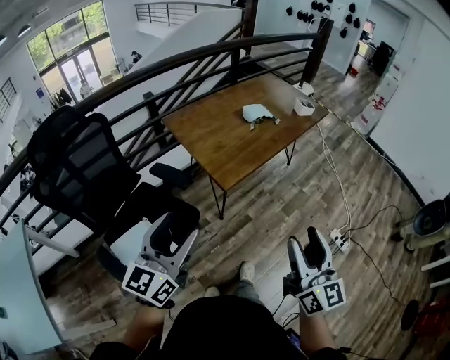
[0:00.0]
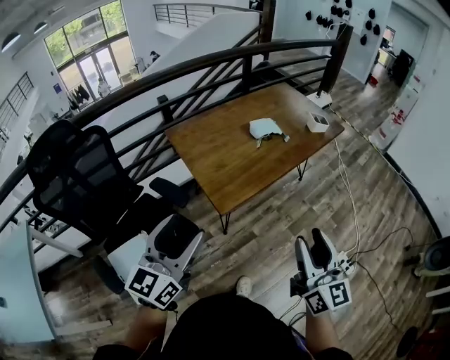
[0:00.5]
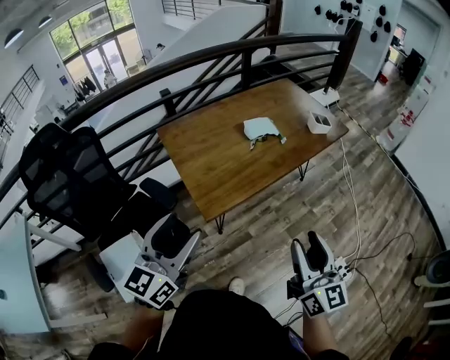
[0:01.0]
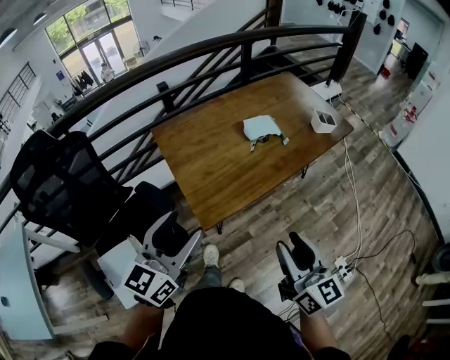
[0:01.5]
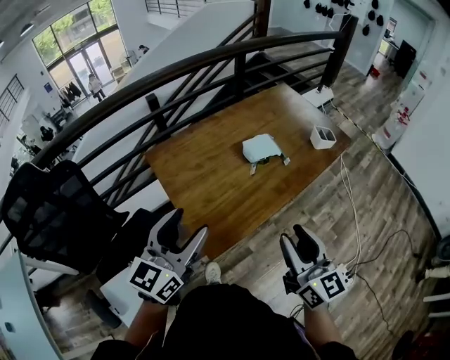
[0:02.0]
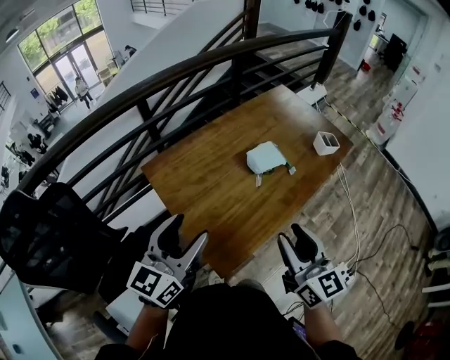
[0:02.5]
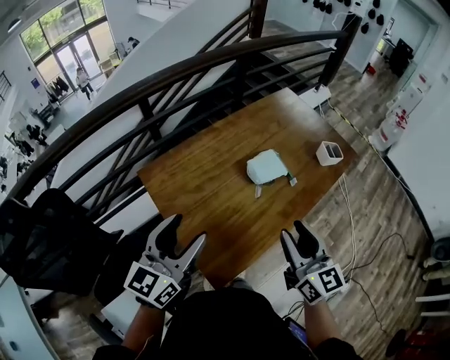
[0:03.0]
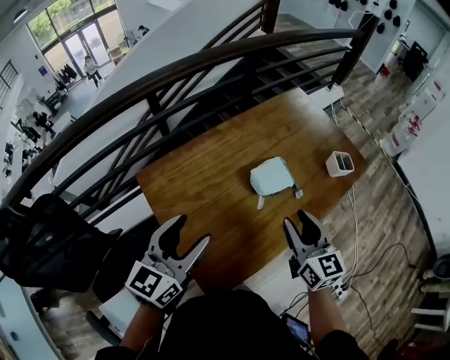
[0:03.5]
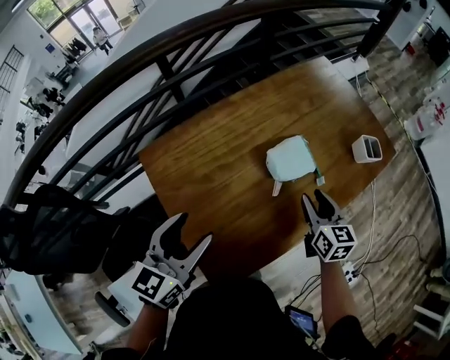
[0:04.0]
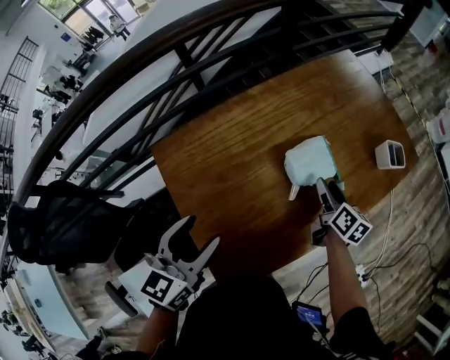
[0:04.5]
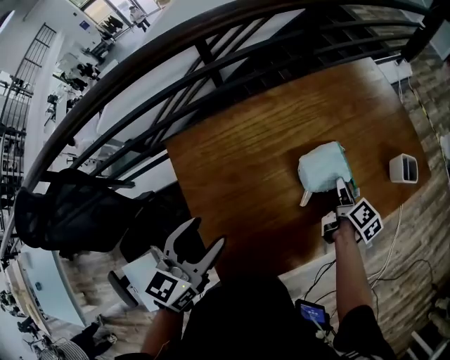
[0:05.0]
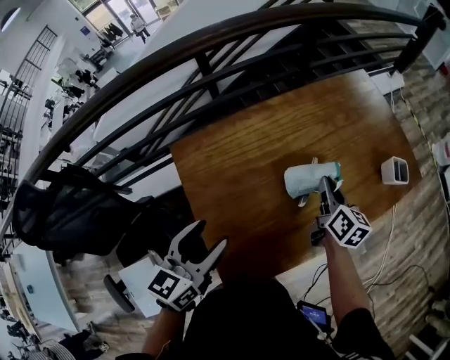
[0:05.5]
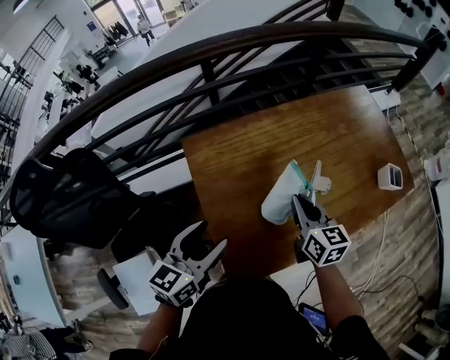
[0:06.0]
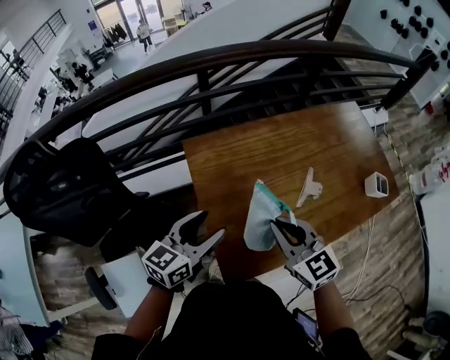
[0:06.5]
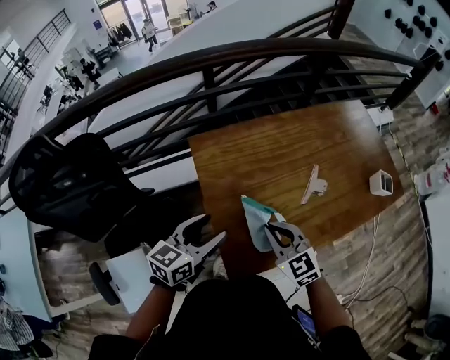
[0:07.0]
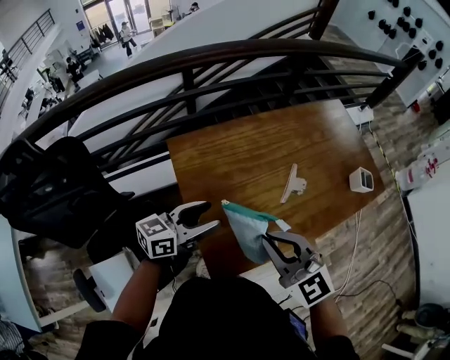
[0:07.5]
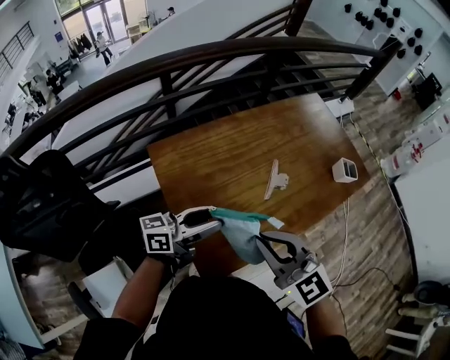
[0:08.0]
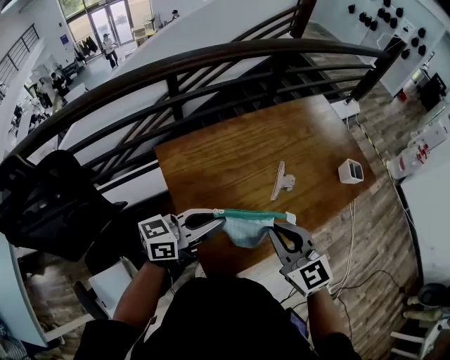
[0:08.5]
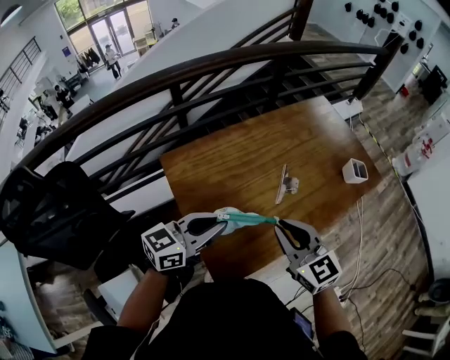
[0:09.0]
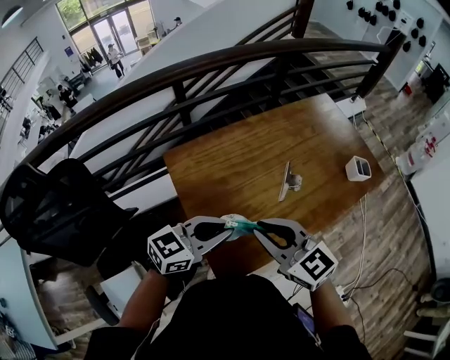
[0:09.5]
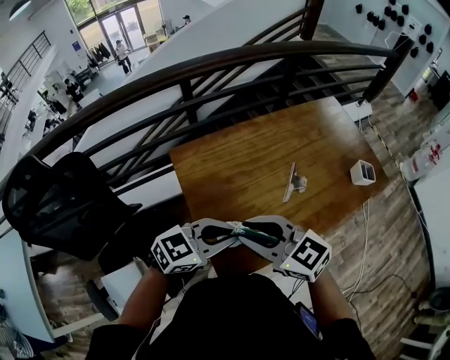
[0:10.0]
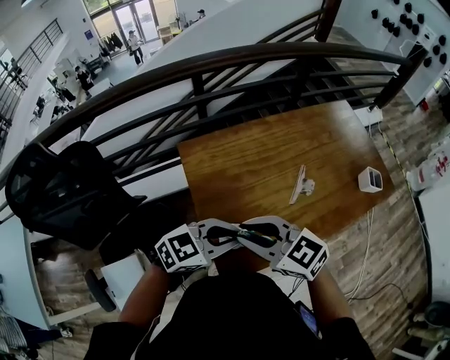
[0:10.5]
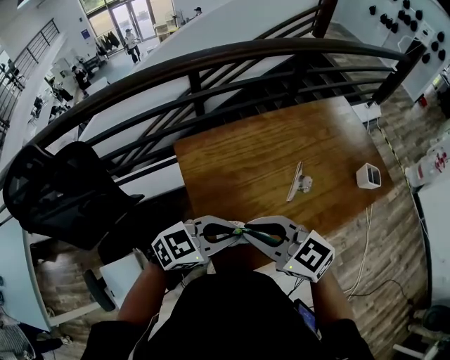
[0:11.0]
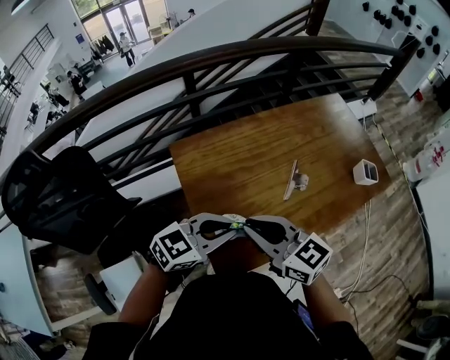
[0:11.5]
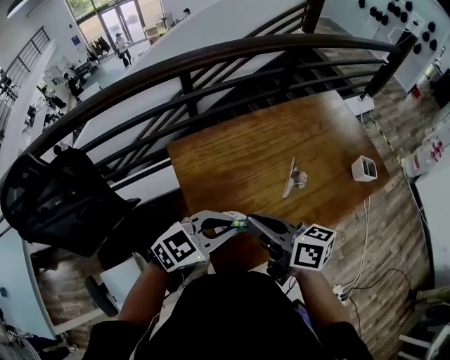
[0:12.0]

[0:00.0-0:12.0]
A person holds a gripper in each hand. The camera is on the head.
0:00.0 to 0:02.0: The two grippers go roughly 30 cm forward.
0:02.0 to 0:04.0: The right gripper heads forward and downward, covering roughly 35 cm, and turns by approximately 30 degrees, while the left gripper heads forward and downward, covering some 20 cm.
0:04.0 to 0:06.0: The left gripper goes approximately 5 cm backward and to the left, while the right gripper travels to the left by approximately 15 cm, and closes up.
0:06.0 to 0:08.0: The right gripper swings up and down, about 15 cm each way, with 2 reversals, and rotates about 40 degrees, while the left gripper moves to the right, roughly 10 cm, and rotates approximately 50 degrees.
0:08.0 to 0:10.0: The left gripper changes place by roughly 5 cm, turns by roughly 40 degrees, and closes up. The right gripper moves roughly 5 cm, and rotates about 20 degrees.
0:10.0 to 0:12.0: The right gripper twists approximately 40 degrees clockwise, seen from behind.

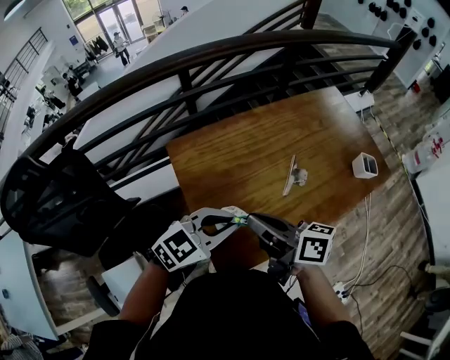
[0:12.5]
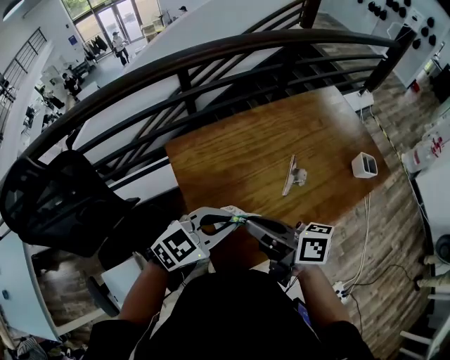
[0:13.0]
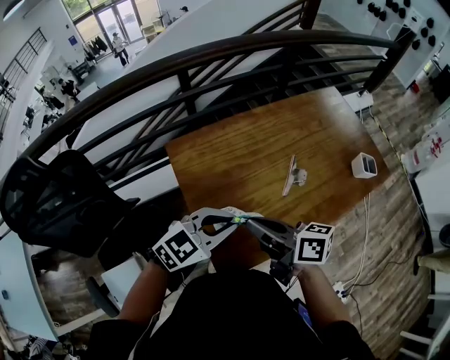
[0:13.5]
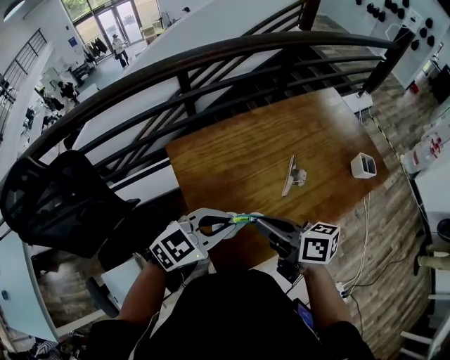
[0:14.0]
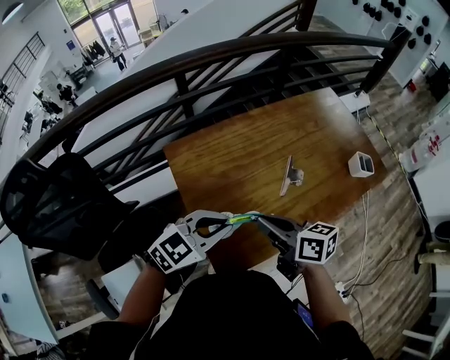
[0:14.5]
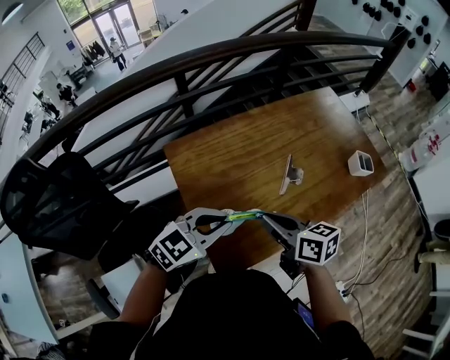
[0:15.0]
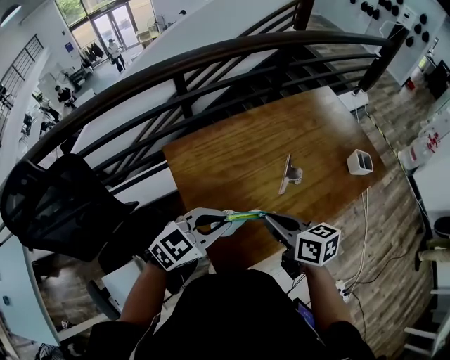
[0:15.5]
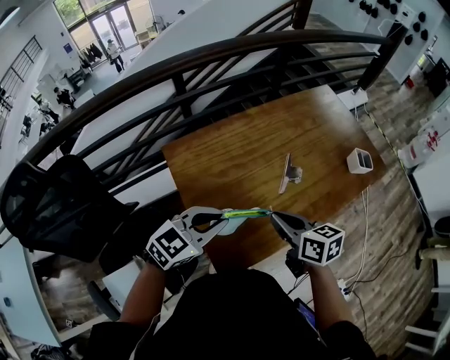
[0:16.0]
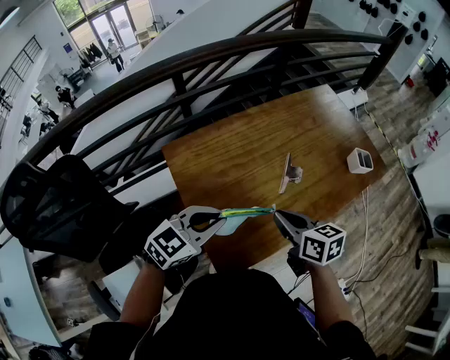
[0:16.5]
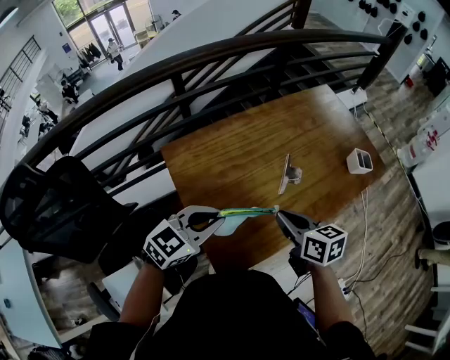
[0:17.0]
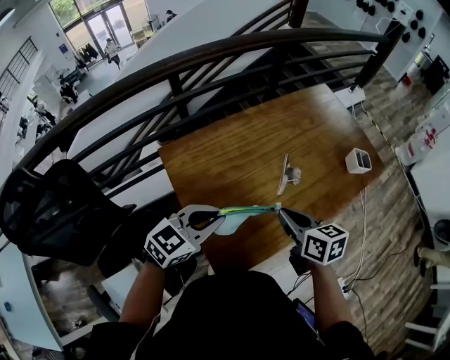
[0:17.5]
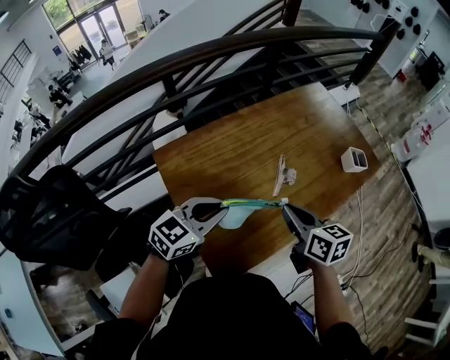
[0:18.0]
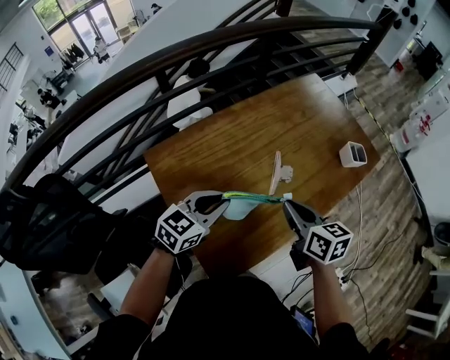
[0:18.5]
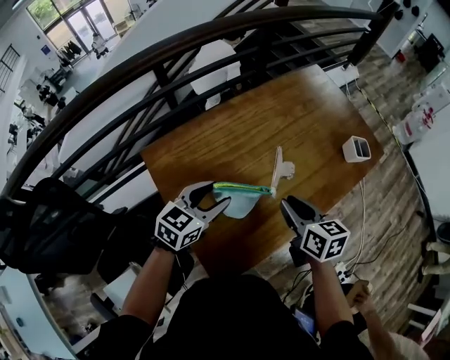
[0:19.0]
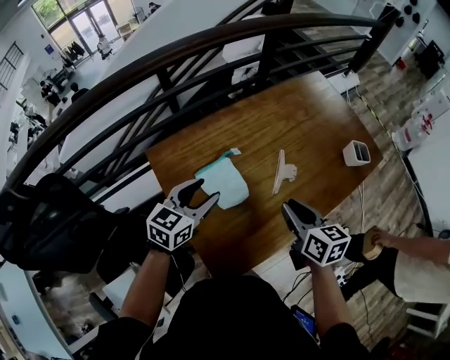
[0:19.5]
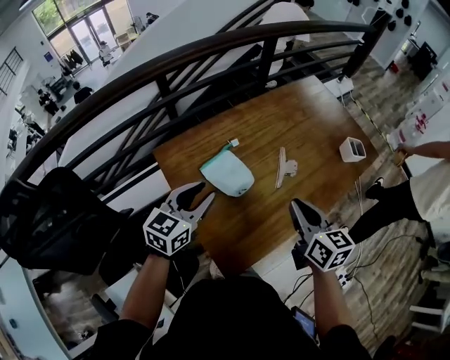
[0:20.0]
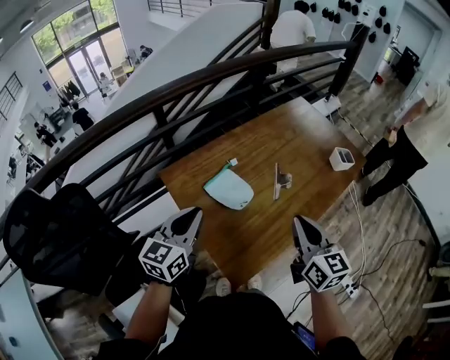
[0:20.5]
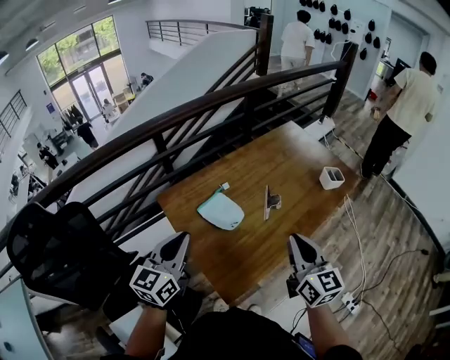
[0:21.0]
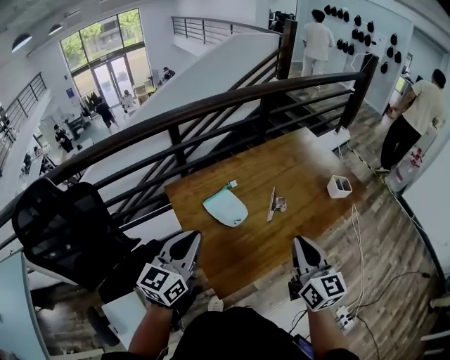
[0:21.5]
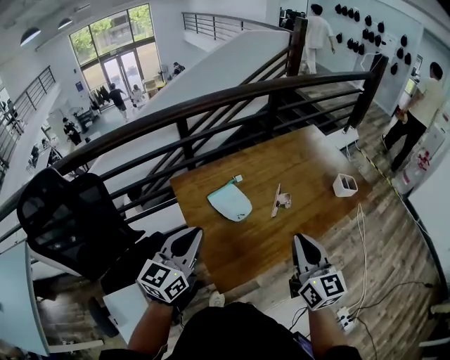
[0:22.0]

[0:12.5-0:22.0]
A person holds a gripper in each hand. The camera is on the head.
0:12.5 to 0:14.5: The right gripper ends up roughly 5 cm from where it was.
0:14.5 to 0:16.5: The right gripper heads to the right, covering approximately 5 cm.
0:16.5 to 0:18.0: The left gripper goes roughly 5 cm forward.
0:18.0 to 0:20.0: The left gripper is displaced to the left by some 5 cm, and opens its fingers.
0:20.0 to 0:22.0: The left gripper moves backward and upward, some 15 cm, turns by some 20 degrees, and closes up; the right gripper moves upward and backward, some 15 cm, and changes its angle by roughly 20 degrees.

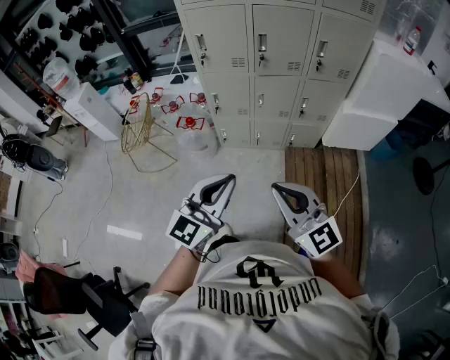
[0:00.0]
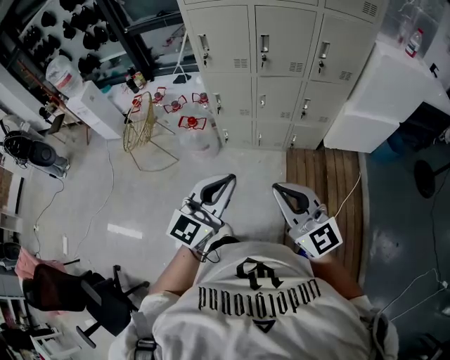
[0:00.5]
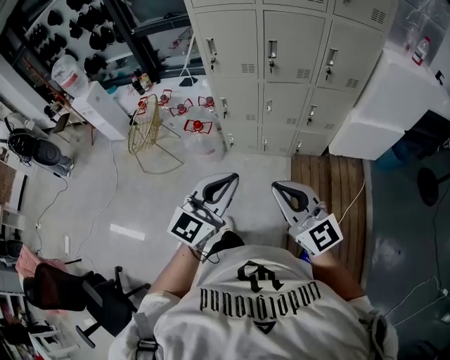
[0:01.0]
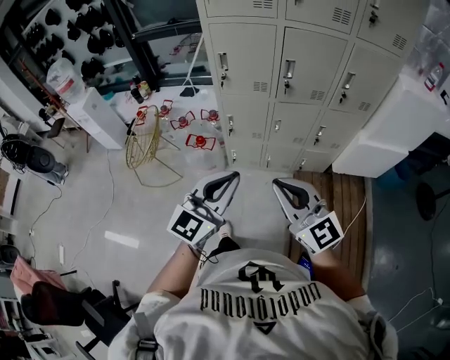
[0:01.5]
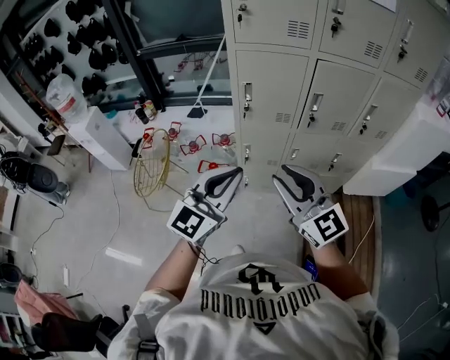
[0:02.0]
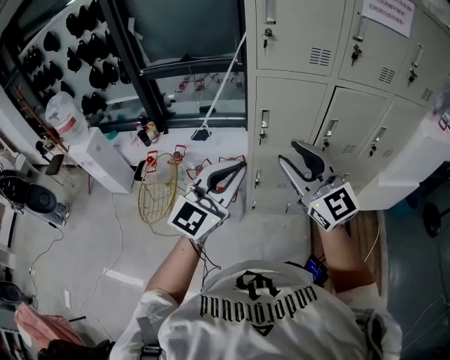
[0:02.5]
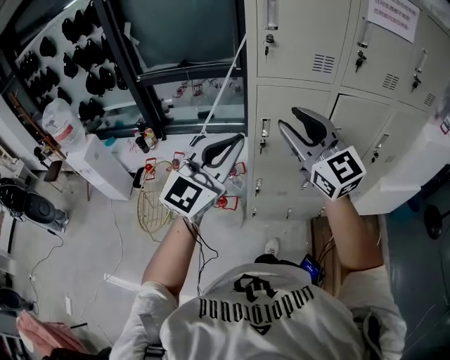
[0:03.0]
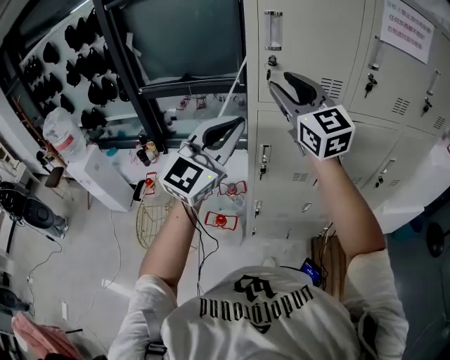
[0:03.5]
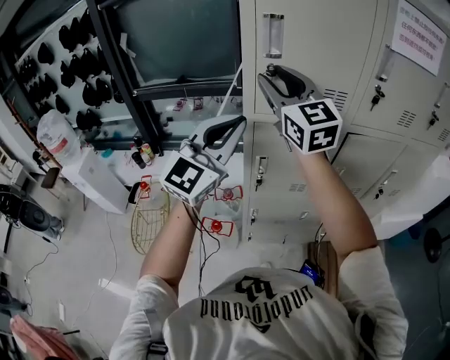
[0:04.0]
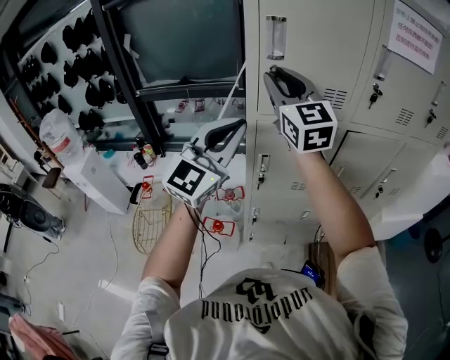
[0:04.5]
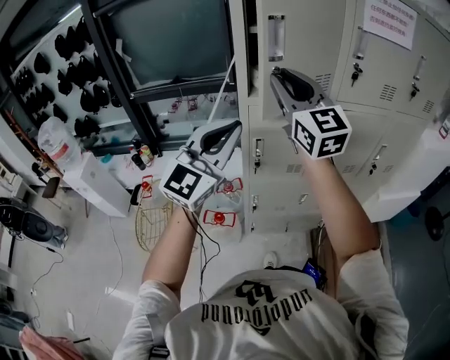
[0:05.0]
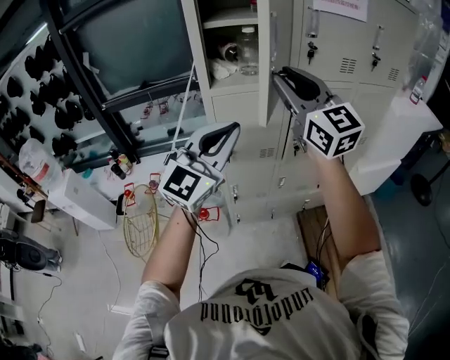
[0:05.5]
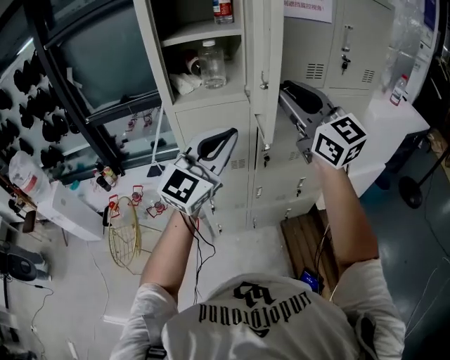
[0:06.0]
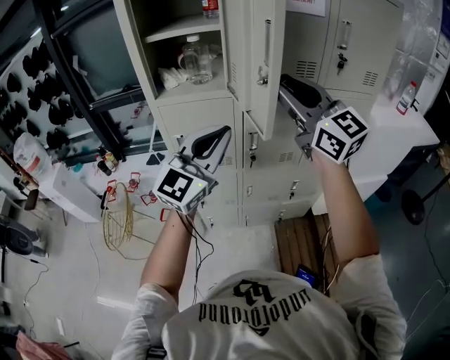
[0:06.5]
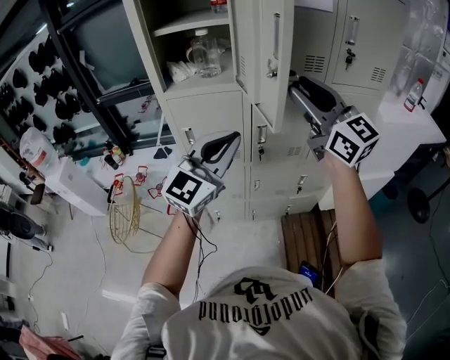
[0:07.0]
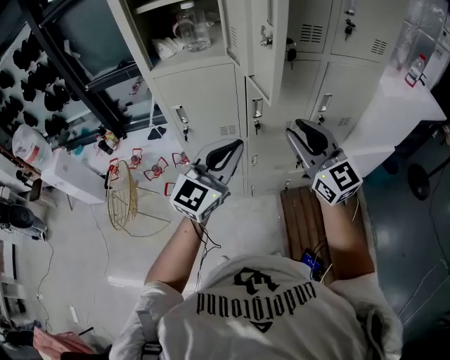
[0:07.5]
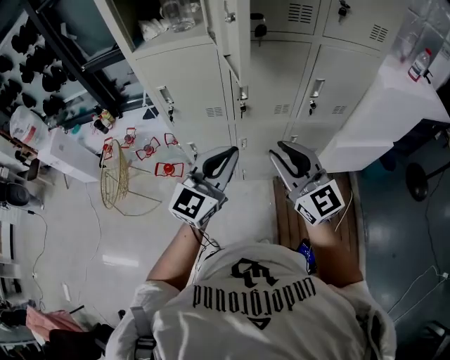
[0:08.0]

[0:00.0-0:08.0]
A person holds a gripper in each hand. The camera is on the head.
0:00.0 to 0:02.0: The two grippers go some 35 cm forward and to the left. The right gripper opens.
0:02.0 to 0:04.0: The grippers both shift forward and upward by about 40 cm.
0:04.0 to 0:06.0: Both grippers move to the right and backward, some 25 cm.
0:06.0 to 0:08.0: Both grippers travel together downward and to the right, some 25 cm. The left gripper turns by some 20 degrees.
